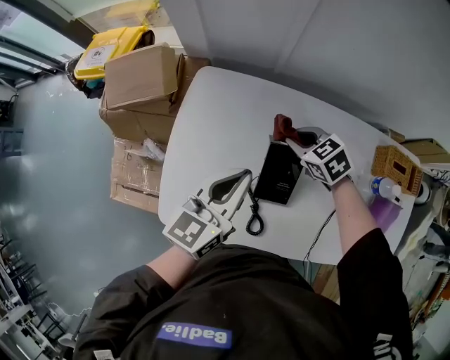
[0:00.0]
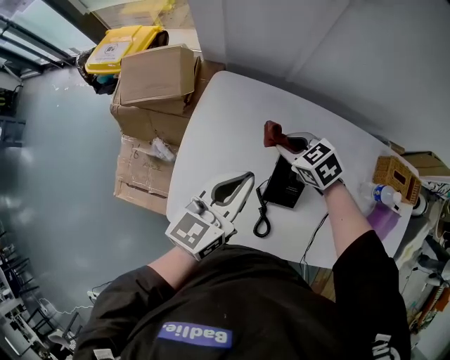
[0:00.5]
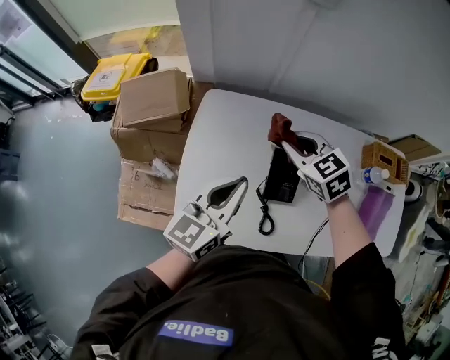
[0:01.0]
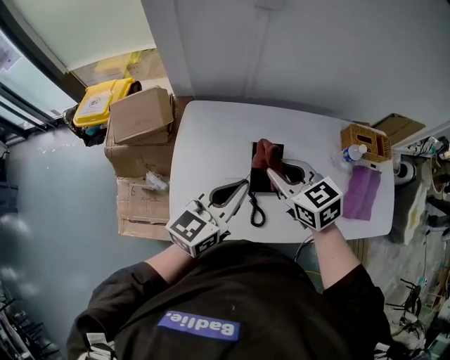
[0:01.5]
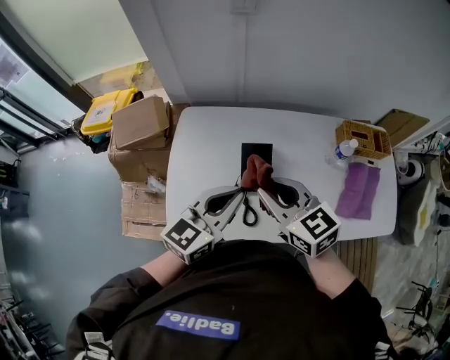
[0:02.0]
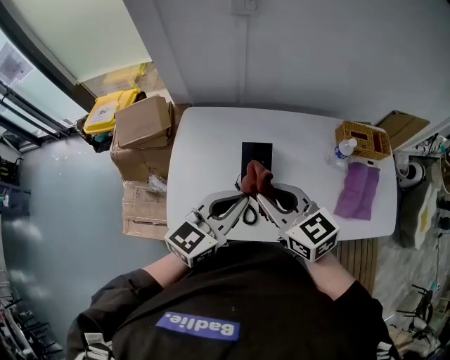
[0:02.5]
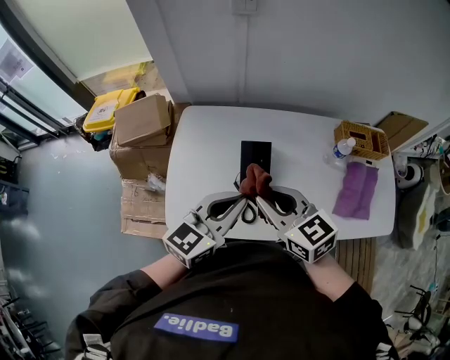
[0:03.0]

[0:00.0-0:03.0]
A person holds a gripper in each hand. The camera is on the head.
0:00.0 to 0:01.5: The left gripper is displaced backward and upward by some 10 cm, while the right gripper is displaced upward and backward by approximately 25 cm, and turns by about 30 degrees.
0:01.5 to 0:03.0: The left gripper shifts approximately 10 cm backward and to the right, while the right gripper goes some 10 cm backward.

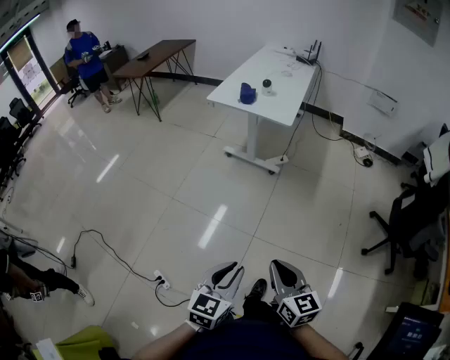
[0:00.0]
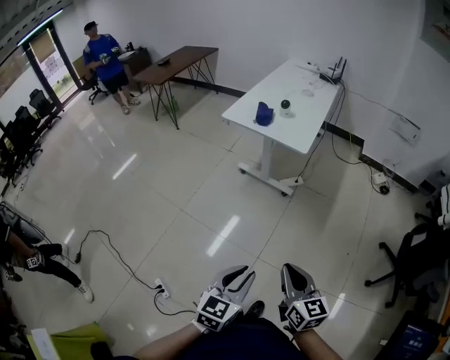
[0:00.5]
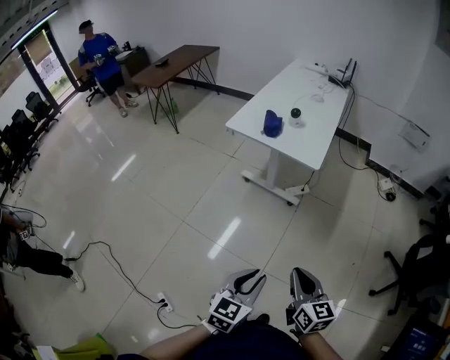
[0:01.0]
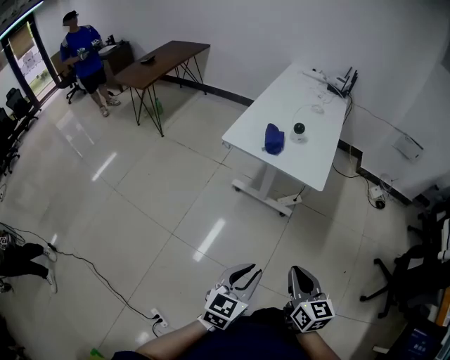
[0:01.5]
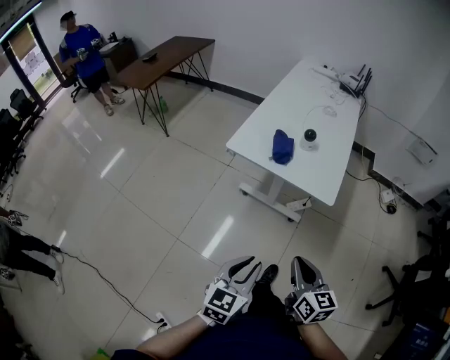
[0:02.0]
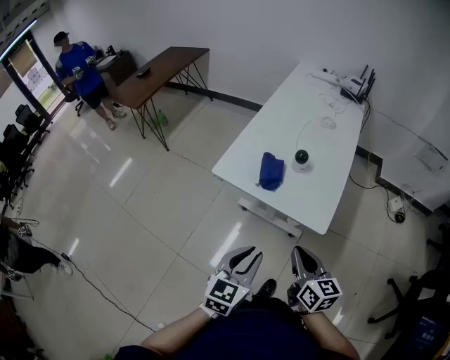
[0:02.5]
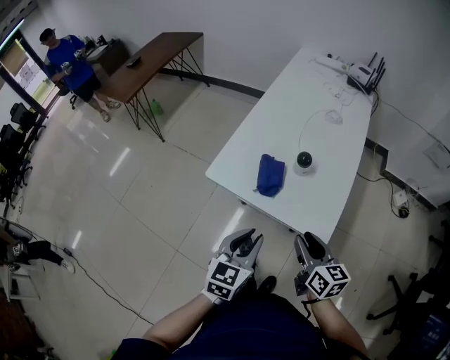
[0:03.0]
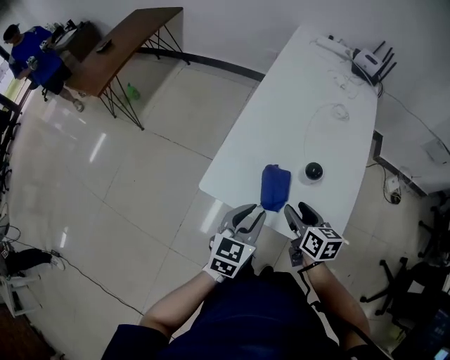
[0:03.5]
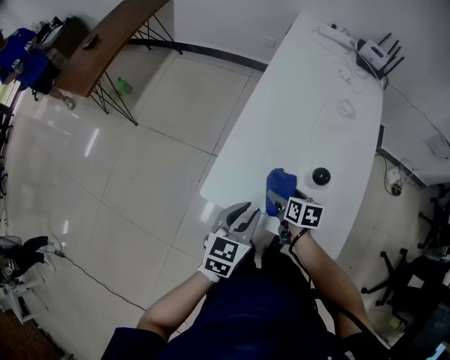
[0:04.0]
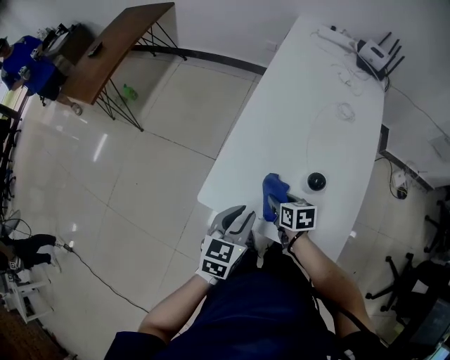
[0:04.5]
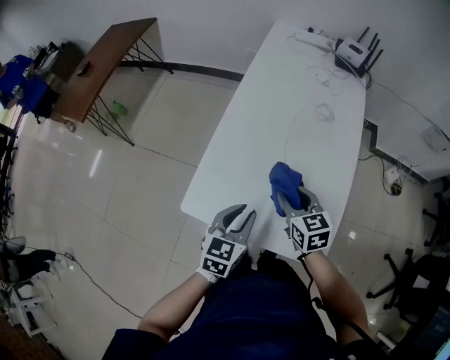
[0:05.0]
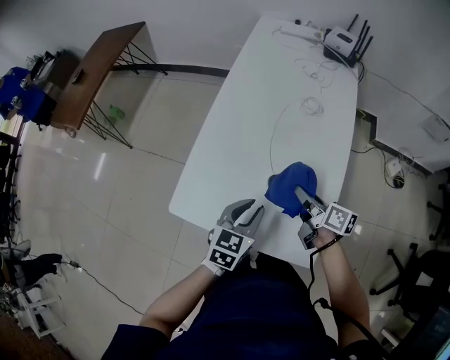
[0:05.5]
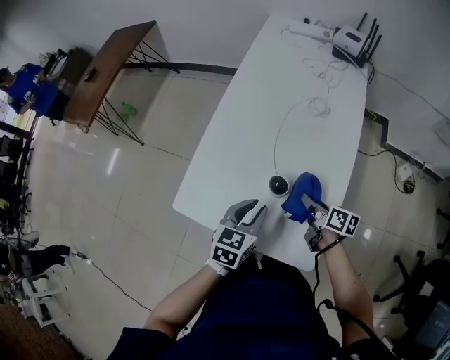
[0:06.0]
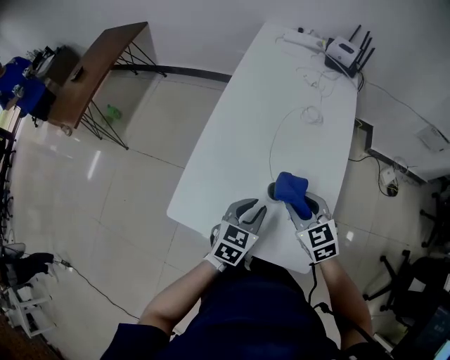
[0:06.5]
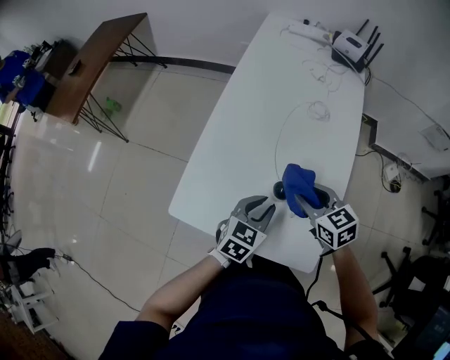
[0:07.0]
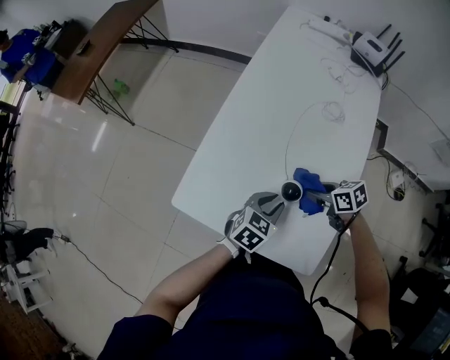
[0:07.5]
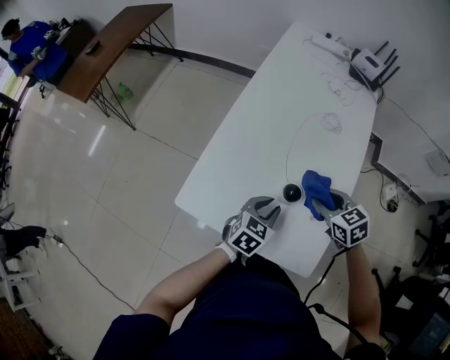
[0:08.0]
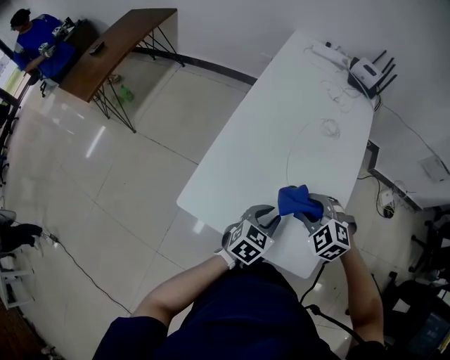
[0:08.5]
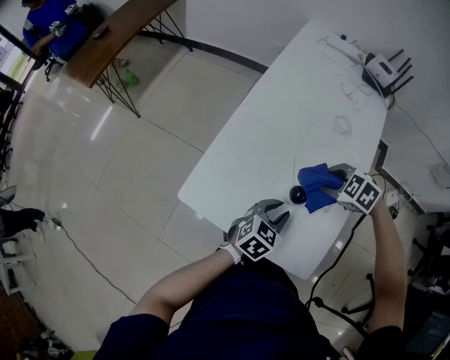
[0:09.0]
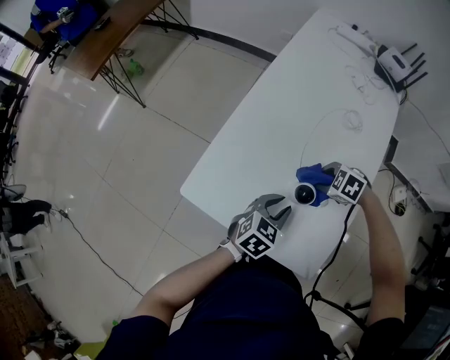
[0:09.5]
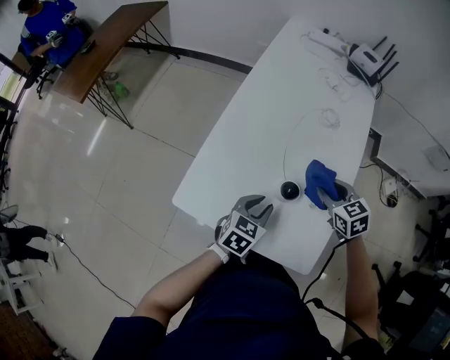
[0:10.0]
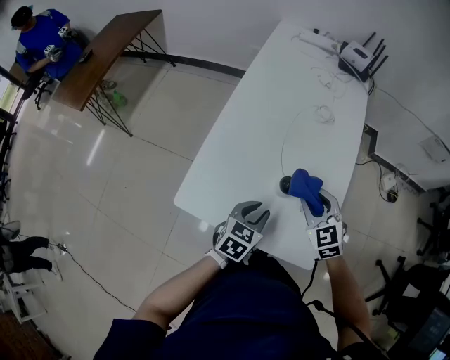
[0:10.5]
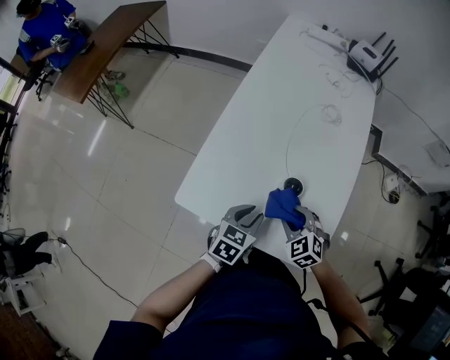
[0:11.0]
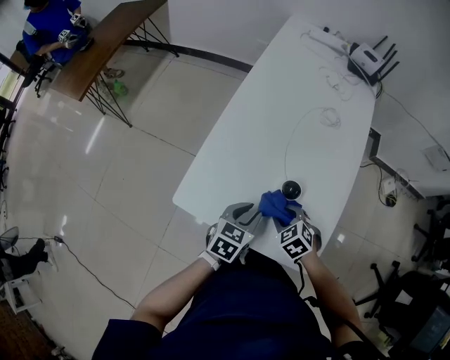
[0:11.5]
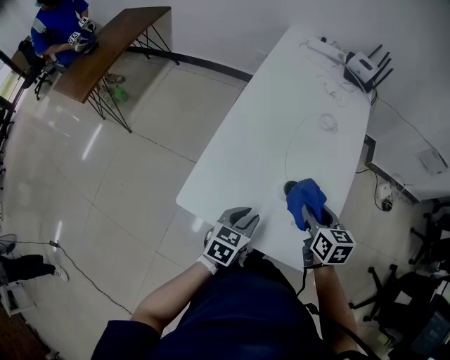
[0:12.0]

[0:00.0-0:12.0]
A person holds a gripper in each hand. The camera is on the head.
0:00.0 to 0:02.0: The pair of grippers is taken forward, some 50 cm.
0:02.0 to 0:04.0: Both grippers are carried forward, some 50 cm. The right gripper heads downward, covering some 20 cm, points its fingers about 30 degrees further downward, and opens.
0:04.0 to 0:06.0: Both grippers travel together to the right, about 20 cm. The right gripper turns by approximately 30 degrees, and closes.
0:06.0 to 0:08.0: The right gripper swings up and down, roughly 10 cm each way, with 2 reversals, and rotates around the line of its fingers by roughly 50 degrees, counterclockwise from behind.
0:08.0 to 0:10.0: The right gripper moves some 10 cm downward and comes back.
0:10.0 to 0:12.0: The right gripper travels backward by approximately 5 cm, goes downward and returns, approximately 10 cm each way, and turns by roughly 30 degrees; the left gripper changes place by roughly 5 cm.

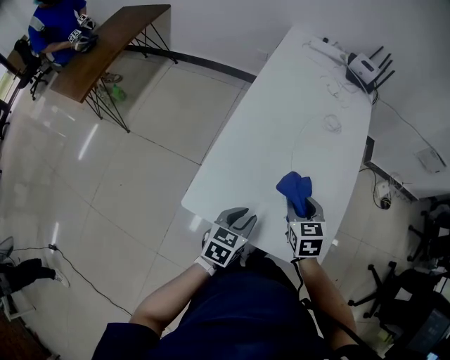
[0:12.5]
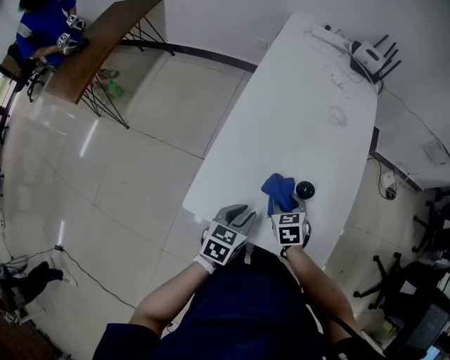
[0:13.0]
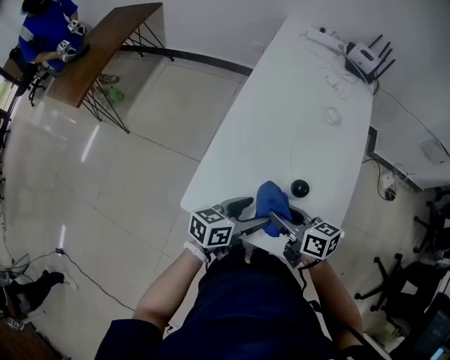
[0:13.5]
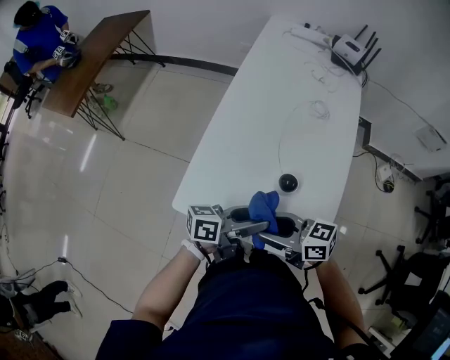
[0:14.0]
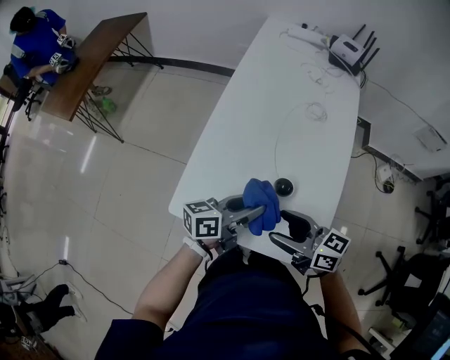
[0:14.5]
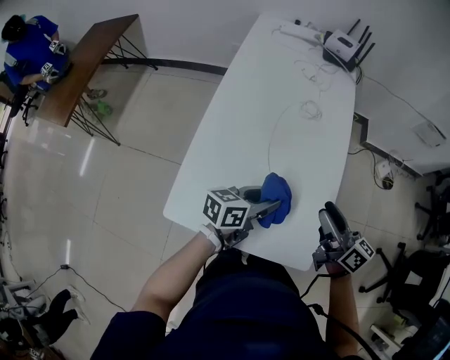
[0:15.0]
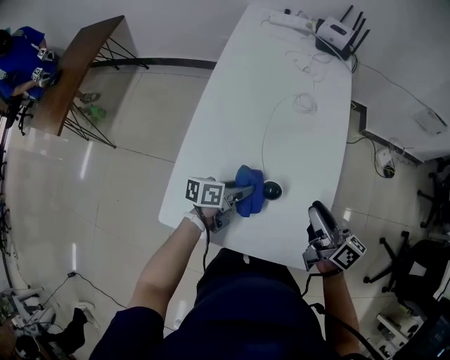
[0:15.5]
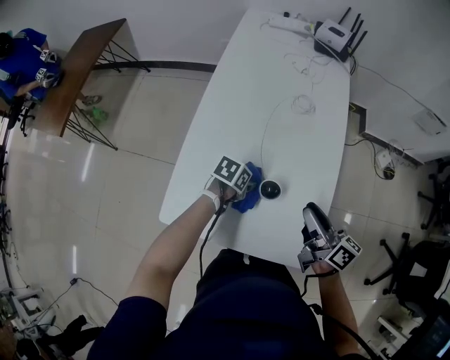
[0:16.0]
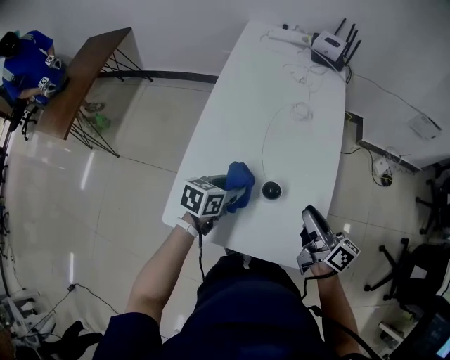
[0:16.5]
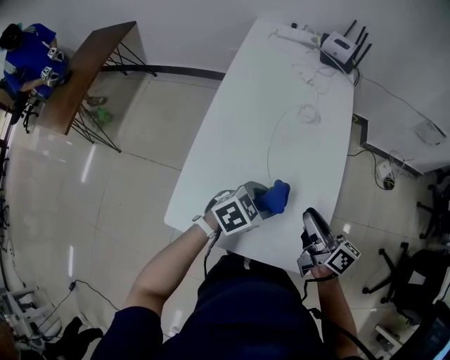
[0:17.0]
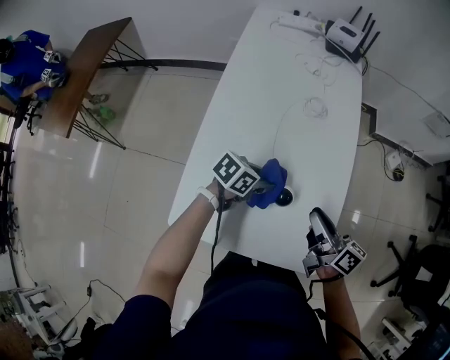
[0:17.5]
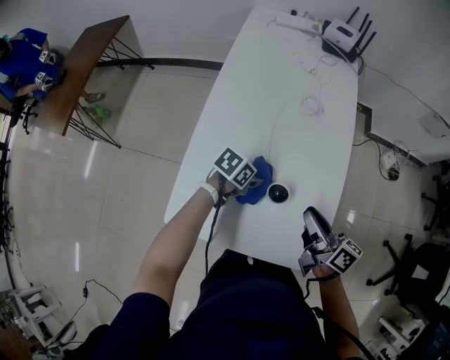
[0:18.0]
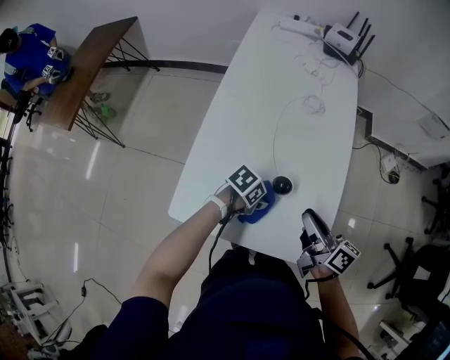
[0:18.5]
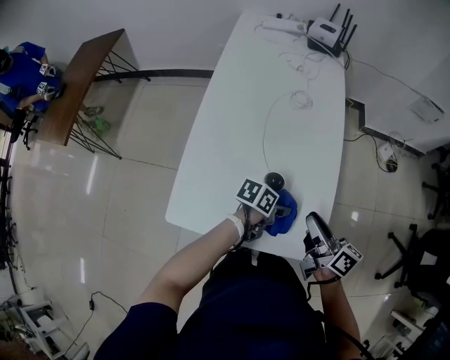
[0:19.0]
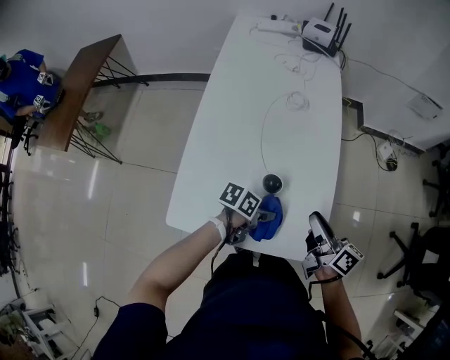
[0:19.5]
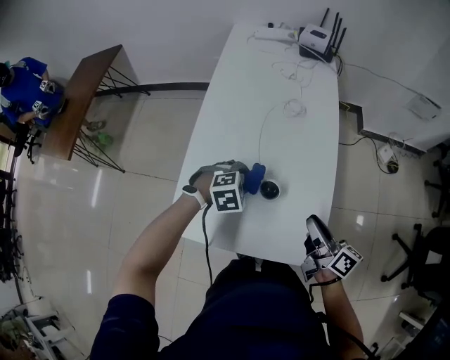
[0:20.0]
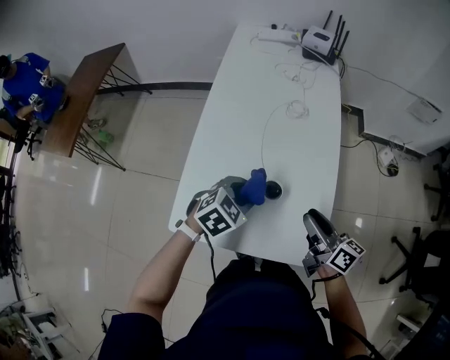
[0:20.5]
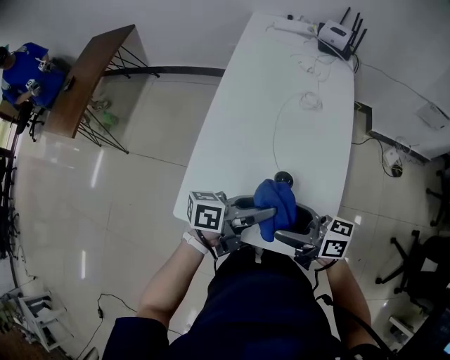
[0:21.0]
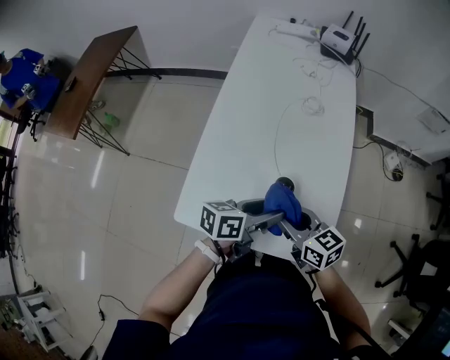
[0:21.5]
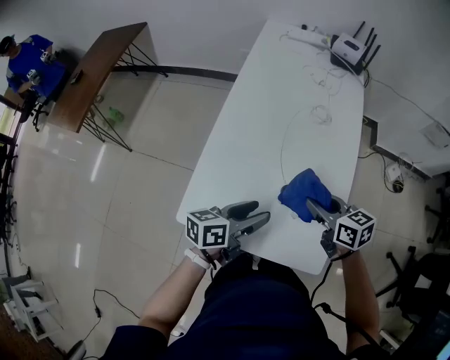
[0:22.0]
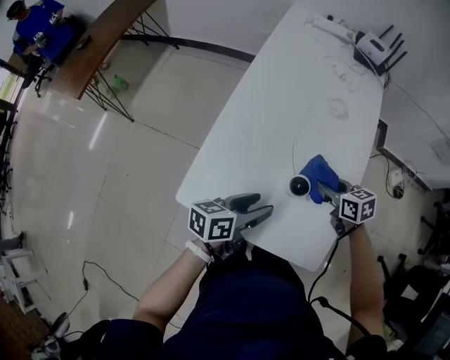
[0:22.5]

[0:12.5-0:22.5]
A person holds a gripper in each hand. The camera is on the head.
0:12.5 to 0:14.5: Both grippers travel together upward, approximately 10 cm. The right gripper angles its fingers upward, by approximately 30 degrees, and opens its fingers. Meanwhile the left gripper angles its fingers upward, by some 30 degrees, and opens and closes again.
0:14.5 to 0:16.5: The left gripper travels downward by some 5 cm, and angles its fingers downward, by some 30 degrees; the right gripper moves some 15 cm, changes its angle by about 40 degrees, and closes.
0:16.5 to 0:18.5: The left gripper moves downward, approximately 10 cm, and swivels about 40 degrees.
0:18.5 to 0:20.5: The left gripper goes roughly 10 cm upward, and turns by approximately 50 degrees.
0:20.5 to 0:22.5: The right gripper moves about 15 cm, points its fingers roughly 30 degrees further downward, and opens, then closes again. Meanwhile the left gripper twists some 60 degrees counterclockwise, seen from behind.

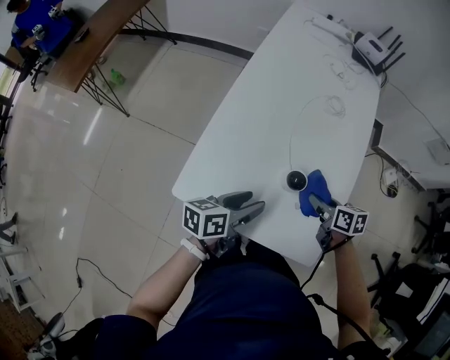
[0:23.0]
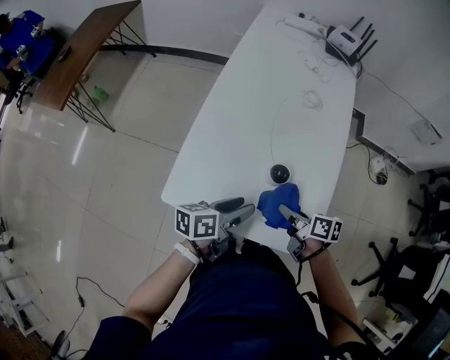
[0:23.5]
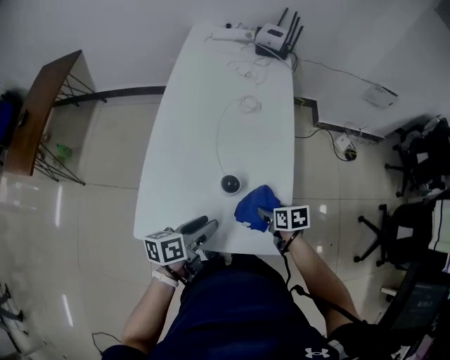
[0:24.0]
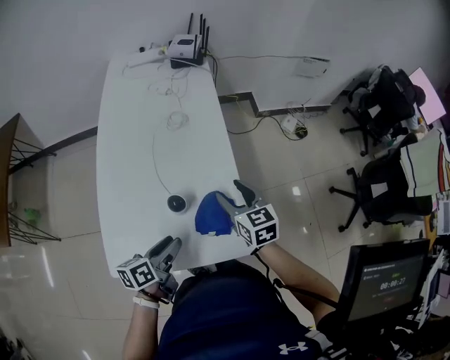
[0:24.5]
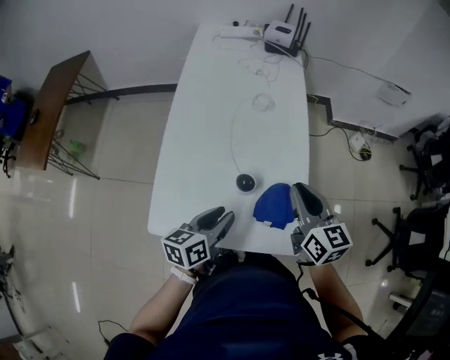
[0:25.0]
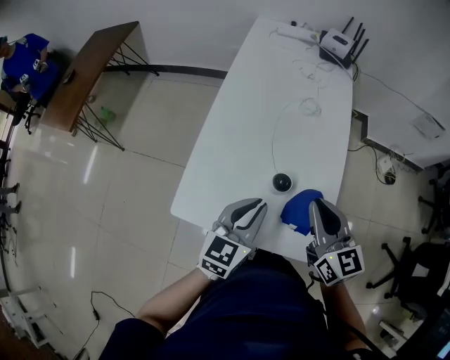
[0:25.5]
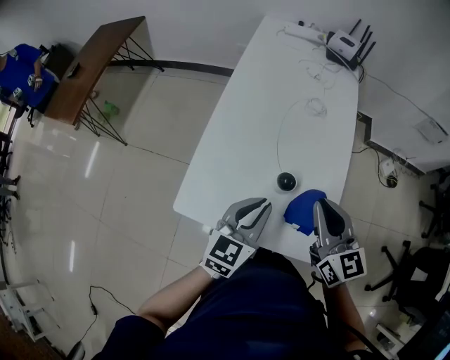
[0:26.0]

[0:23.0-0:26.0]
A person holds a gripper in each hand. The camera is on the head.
0:23.0 to 0:24.5: The right gripper goes some 10 cm upward, and rotates some 40 degrees, while the left gripper changes place by roughly 5 cm.
0:24.5 to 0:26.0: The left gripper is displaced upward by approximately 10 cm, rolls clockwise, seen from behind, by some 40 degrees, and closes, while the right gripper goes some 15 cm upward and to the left, turns by about 20 degrees, and closes its fingers.
